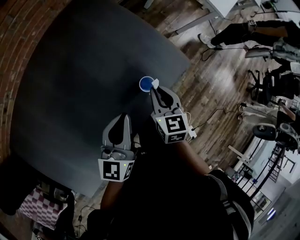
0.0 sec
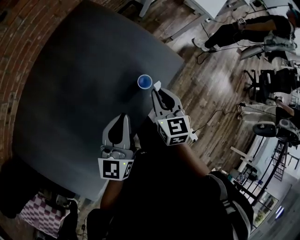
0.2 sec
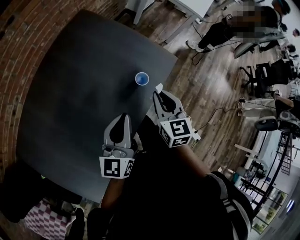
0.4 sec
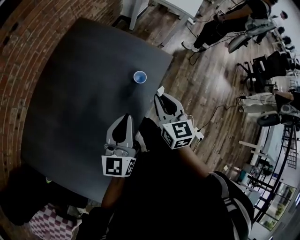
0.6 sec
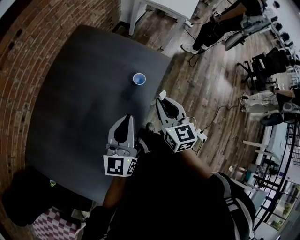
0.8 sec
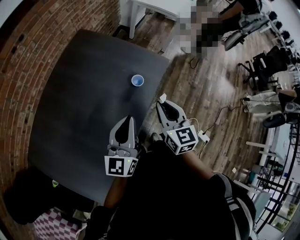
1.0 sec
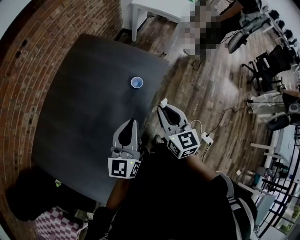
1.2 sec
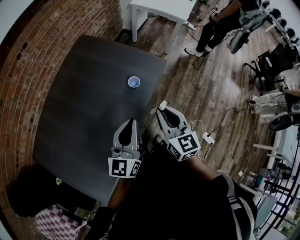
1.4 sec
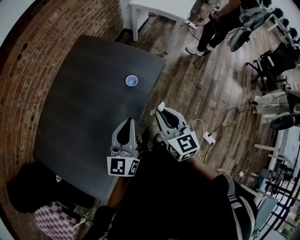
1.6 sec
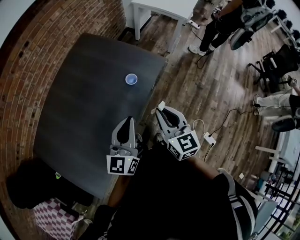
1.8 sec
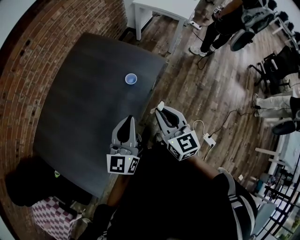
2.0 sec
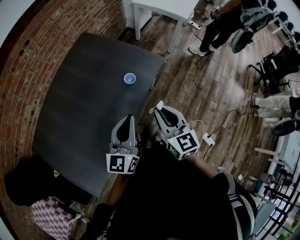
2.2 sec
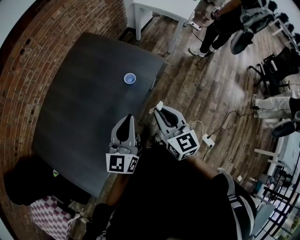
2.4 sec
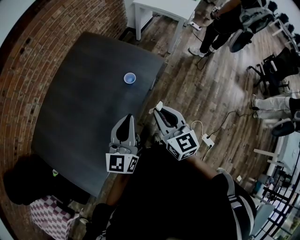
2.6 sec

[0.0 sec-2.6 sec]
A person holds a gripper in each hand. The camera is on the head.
0.0 sec to 1.2 sec: Both grippers travel together backward and upward, about 20 cm. The right gripper turns by about 20 degrees.
1.2 sec to 2.6 sec: The two grippers go some 5 cm to the right.

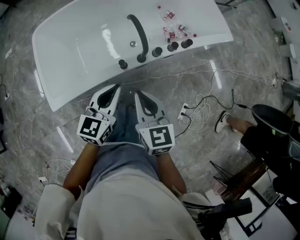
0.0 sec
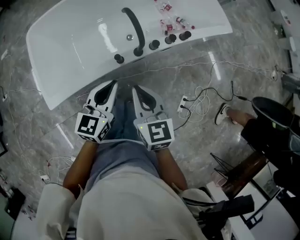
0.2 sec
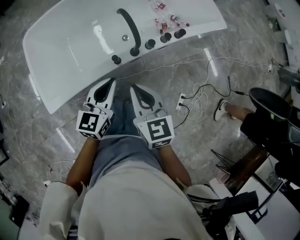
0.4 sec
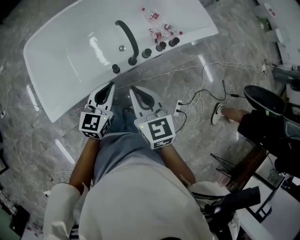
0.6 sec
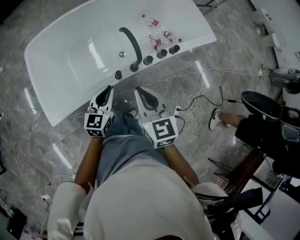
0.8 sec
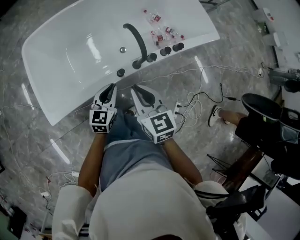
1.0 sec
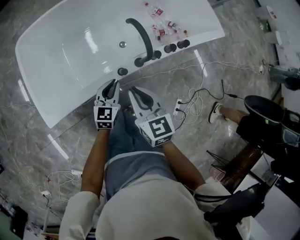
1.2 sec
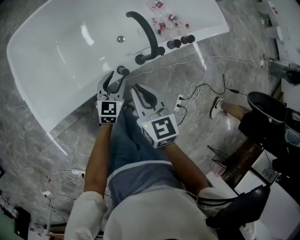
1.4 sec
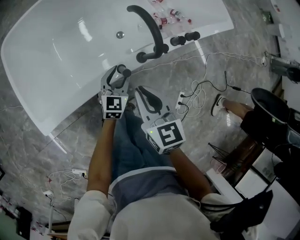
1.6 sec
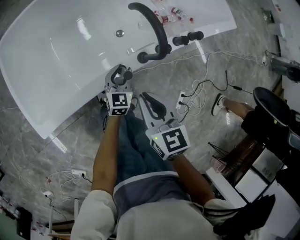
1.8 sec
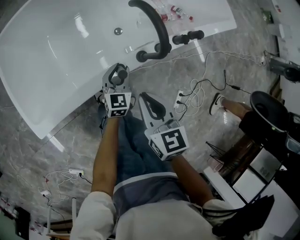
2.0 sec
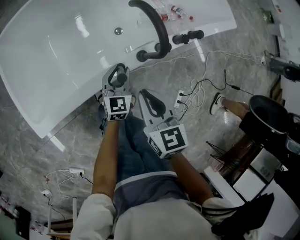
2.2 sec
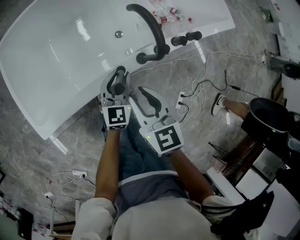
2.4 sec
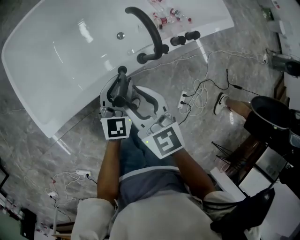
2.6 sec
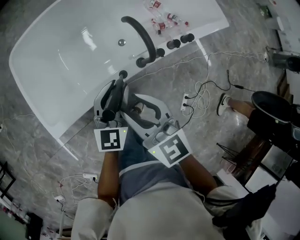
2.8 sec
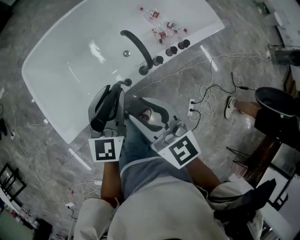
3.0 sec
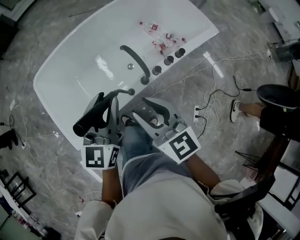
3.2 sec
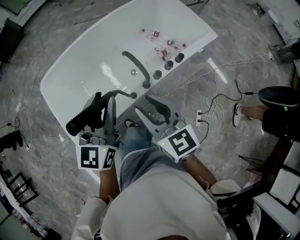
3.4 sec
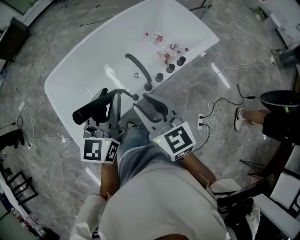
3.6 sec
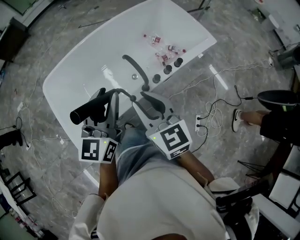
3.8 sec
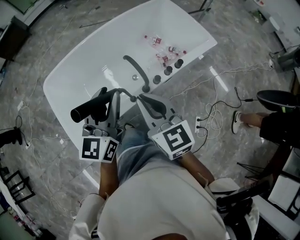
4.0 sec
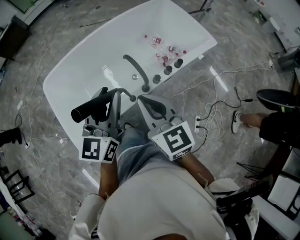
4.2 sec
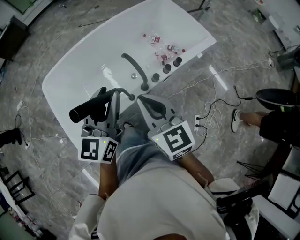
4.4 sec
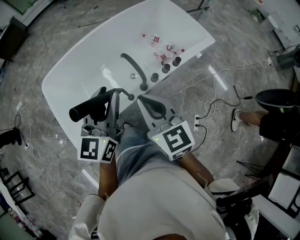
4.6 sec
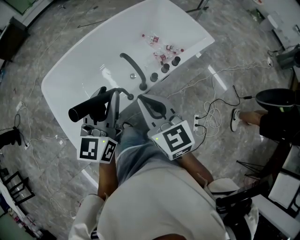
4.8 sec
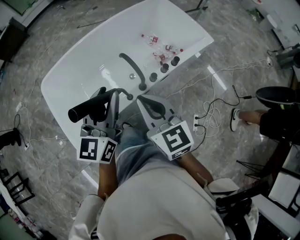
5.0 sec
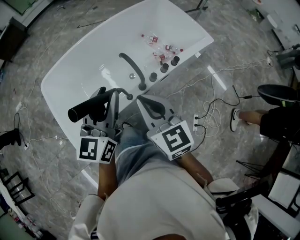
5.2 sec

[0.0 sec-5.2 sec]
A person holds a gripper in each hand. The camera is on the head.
0.0 sec to 1.8 sec: The left gripper goes approximately 50 cm downward and forward, and opens up, while the right gripper travels downward, forward and to the left by about 35 cm.
1.8 sec to 3.4 sec: The grippers both shift upward by approximately 60 cm. The right gripper rotates roughly 20 degrees, and opens up, while the left gripper turns by approximately 20 degrees.
3.4 sec to 5.2 sec: The right gripper closes its fingers.

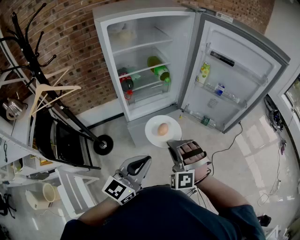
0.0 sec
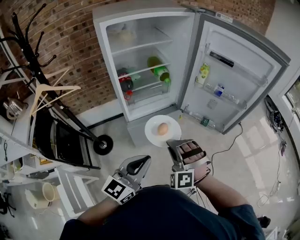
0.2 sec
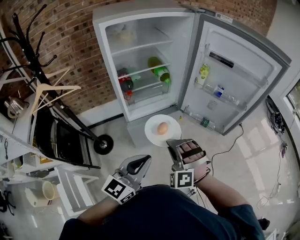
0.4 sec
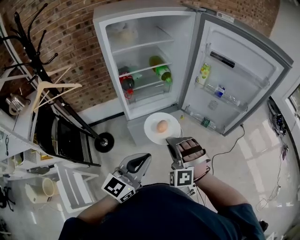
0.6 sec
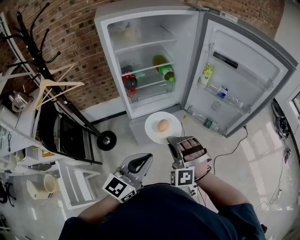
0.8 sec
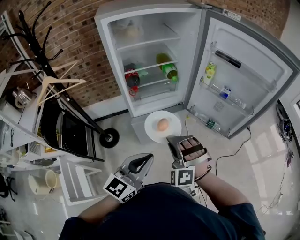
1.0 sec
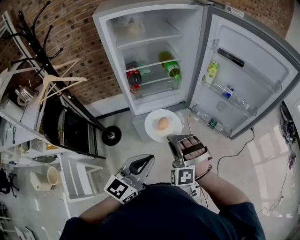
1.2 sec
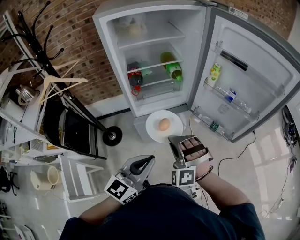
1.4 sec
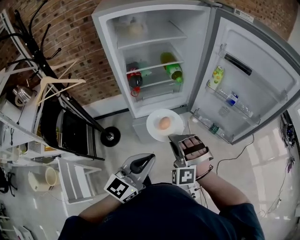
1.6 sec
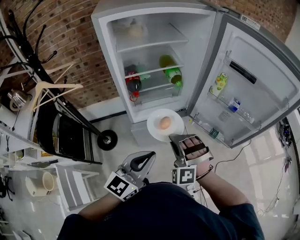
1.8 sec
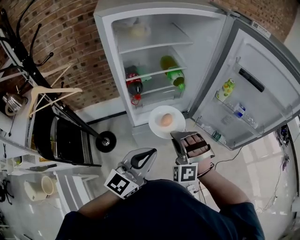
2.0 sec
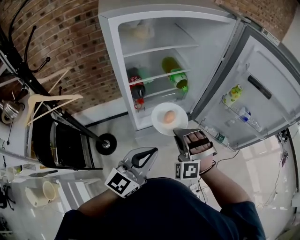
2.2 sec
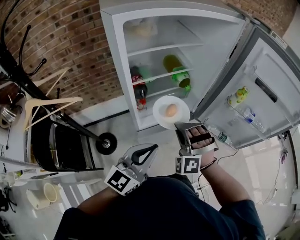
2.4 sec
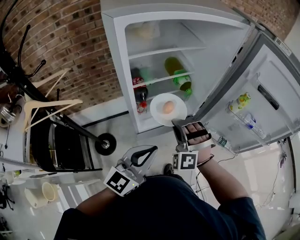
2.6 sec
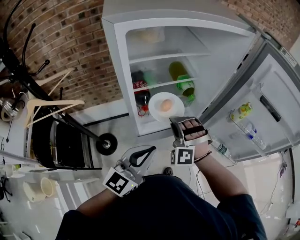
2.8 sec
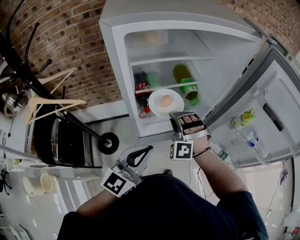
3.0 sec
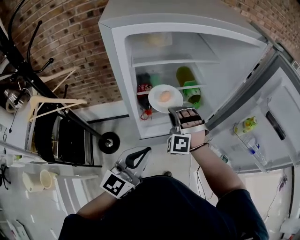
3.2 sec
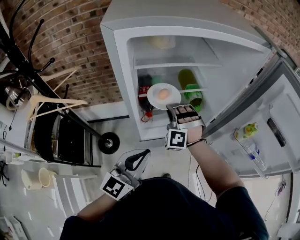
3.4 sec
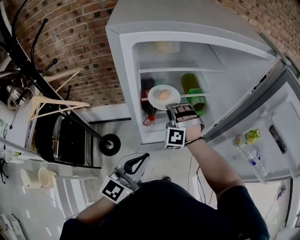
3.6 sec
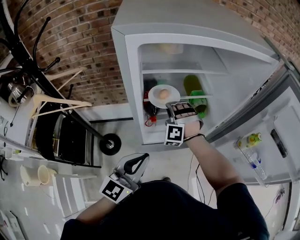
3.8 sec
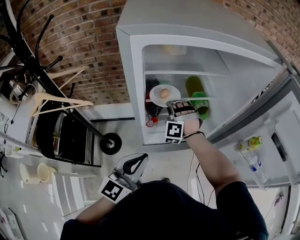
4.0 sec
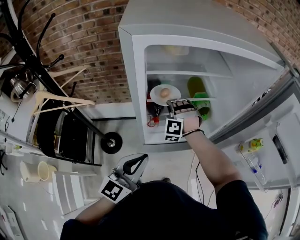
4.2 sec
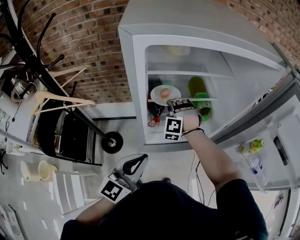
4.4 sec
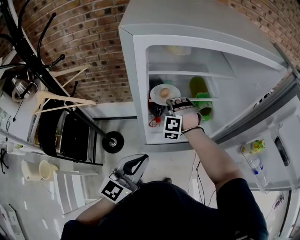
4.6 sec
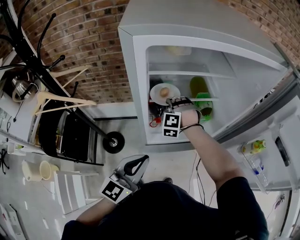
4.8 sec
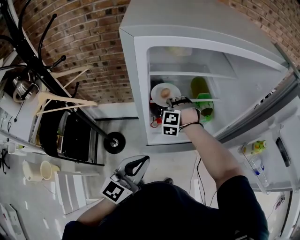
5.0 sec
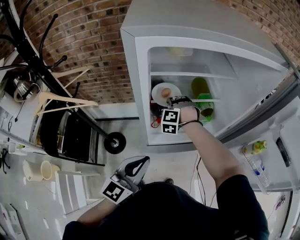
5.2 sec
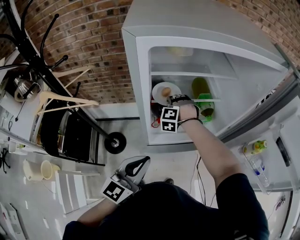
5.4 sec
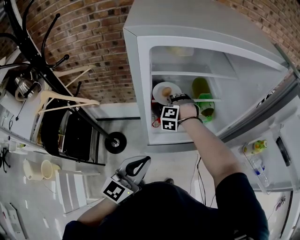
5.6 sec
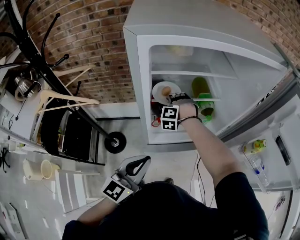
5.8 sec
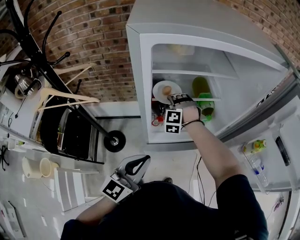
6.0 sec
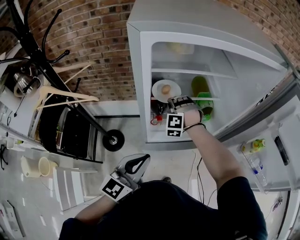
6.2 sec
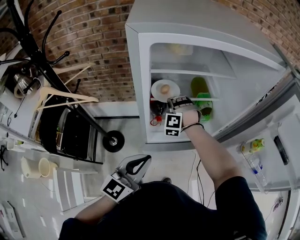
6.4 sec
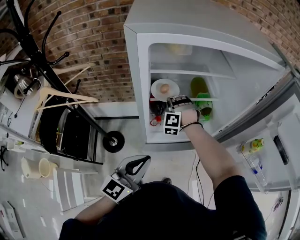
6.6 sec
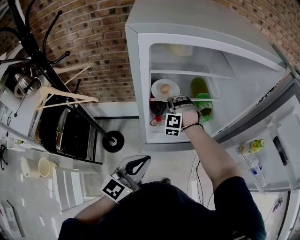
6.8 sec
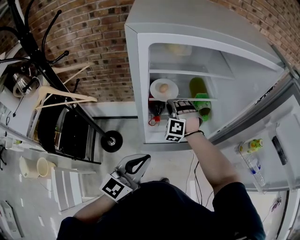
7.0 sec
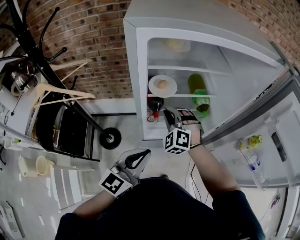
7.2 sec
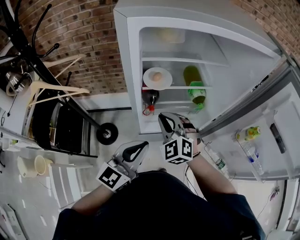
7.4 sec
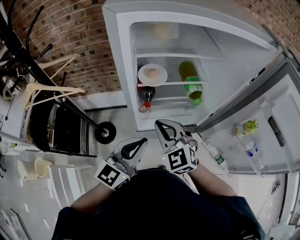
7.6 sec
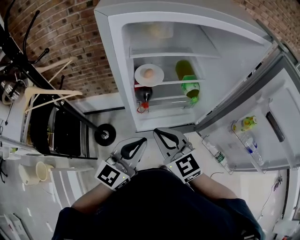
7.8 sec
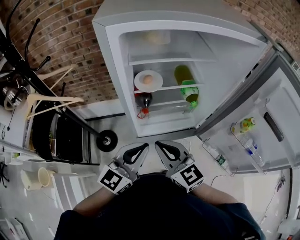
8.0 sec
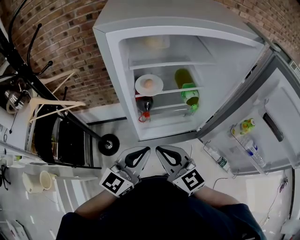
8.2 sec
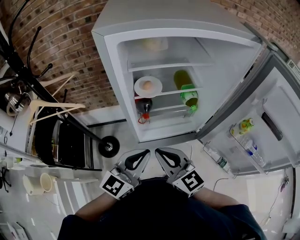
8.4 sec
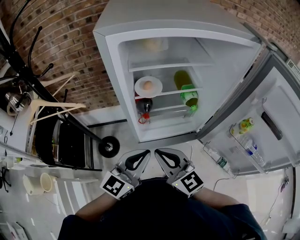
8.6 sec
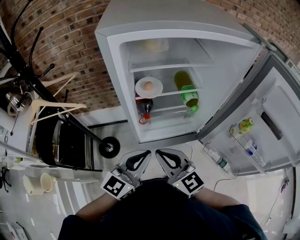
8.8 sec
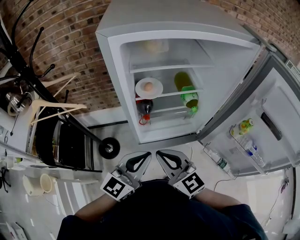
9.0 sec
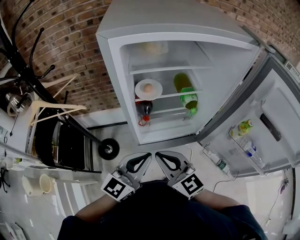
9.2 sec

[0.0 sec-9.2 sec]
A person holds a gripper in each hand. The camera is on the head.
0.0 sec to 1.6 sec: The left gripper moves roughly 5 cm.
1.6 sec to 3.0 sec: The left gripper moves approximately 25 cm.
3.0 sec to 4.6 sec: The left gripper ends up some 5 cm from where it was.

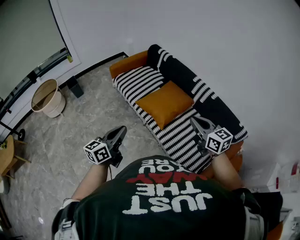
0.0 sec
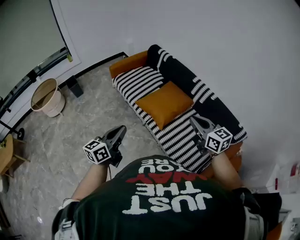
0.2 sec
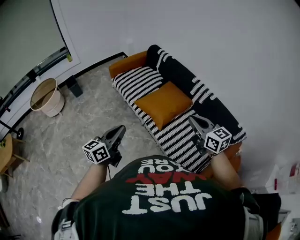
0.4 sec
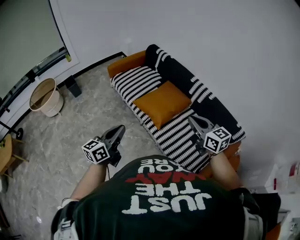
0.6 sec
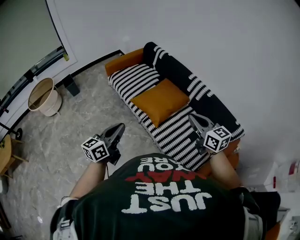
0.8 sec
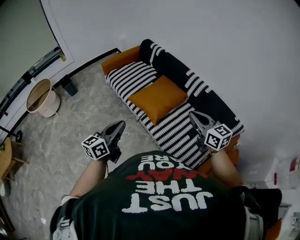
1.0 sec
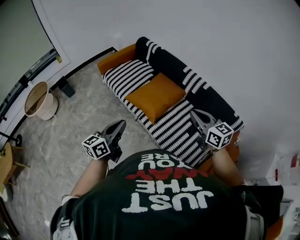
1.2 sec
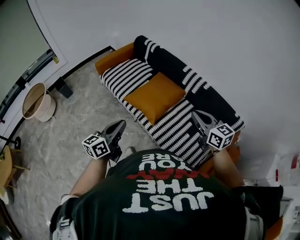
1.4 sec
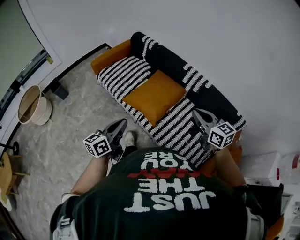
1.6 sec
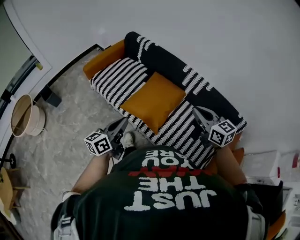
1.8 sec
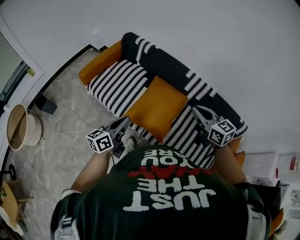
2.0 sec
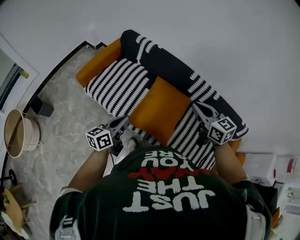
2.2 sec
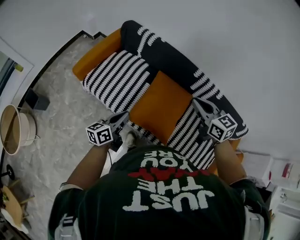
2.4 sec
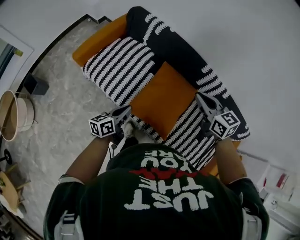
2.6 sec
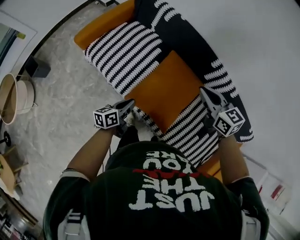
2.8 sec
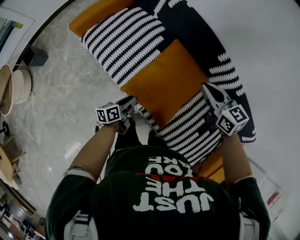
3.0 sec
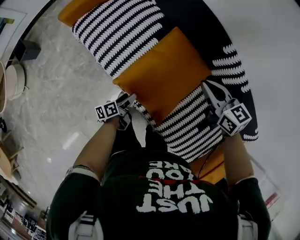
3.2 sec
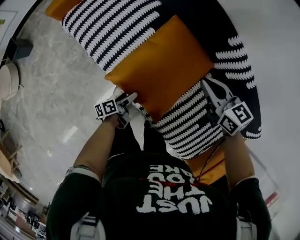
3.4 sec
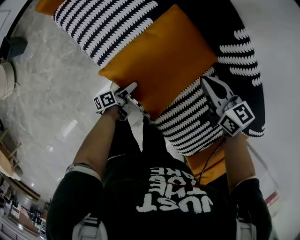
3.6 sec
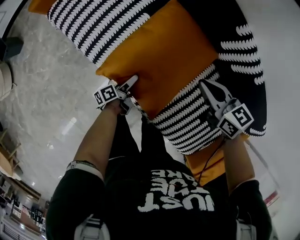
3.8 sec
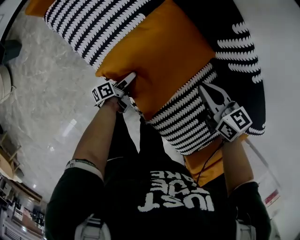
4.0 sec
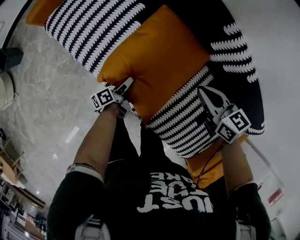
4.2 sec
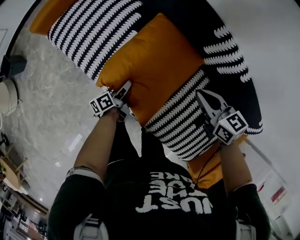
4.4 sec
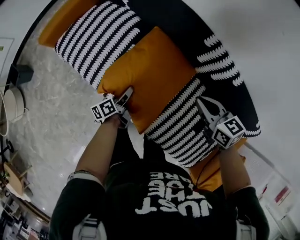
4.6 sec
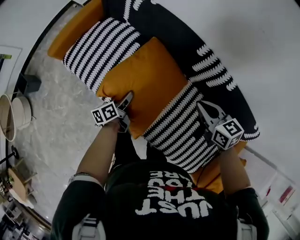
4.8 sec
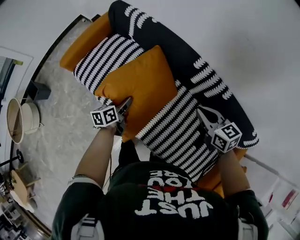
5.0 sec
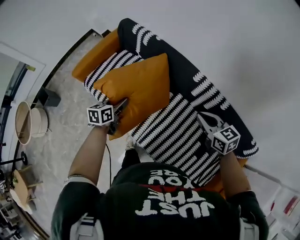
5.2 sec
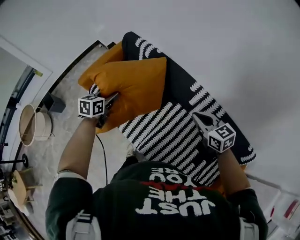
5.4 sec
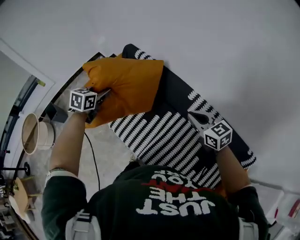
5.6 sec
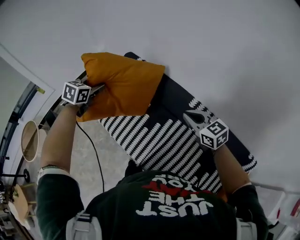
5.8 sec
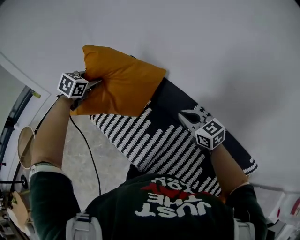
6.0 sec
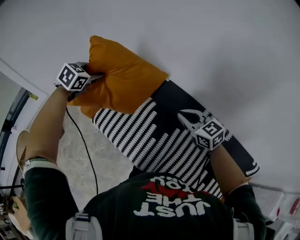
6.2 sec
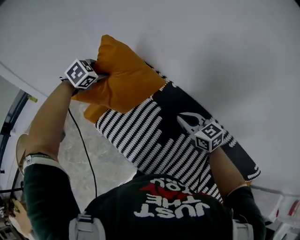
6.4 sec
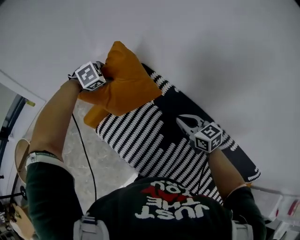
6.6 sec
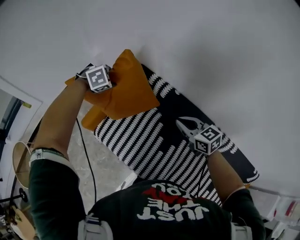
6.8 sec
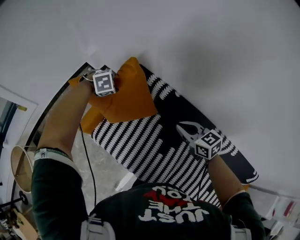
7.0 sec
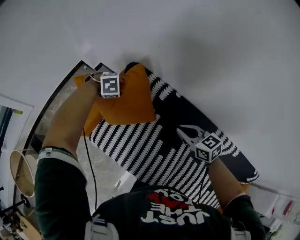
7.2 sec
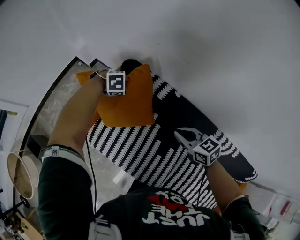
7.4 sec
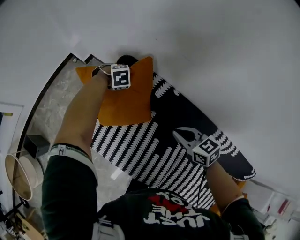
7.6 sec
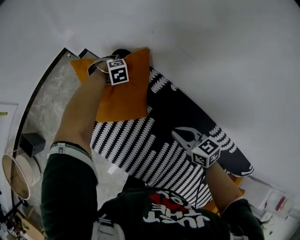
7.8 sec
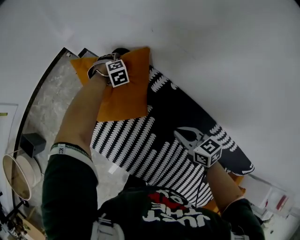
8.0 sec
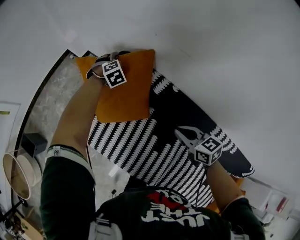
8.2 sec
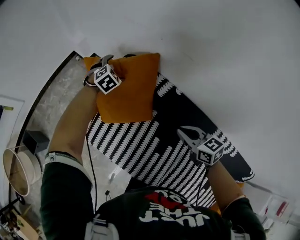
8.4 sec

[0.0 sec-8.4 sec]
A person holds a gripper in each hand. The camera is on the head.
0.0 sec to 1.4 sec: The right gripper travels to the right by about 5 cm, while the left gripper travels to the right and forward by some 10 cm.
1.4 sec to 2.8 sec: The left gripper heads forward and downward, covering roughly 40 cm, and rotates about 30 degrees; the right gripper moves forward and to the left, approximately 40 cm.
2.8 sec to 4.2 sec: The two grippers go roughly 25 cm downward and to the right. The left gripper rotates some 30 degrees, and opens.
4.2 sec to 5.6 sec: The left gripper travels upward and forward by roughly 50 cm, and rolls clockwise, seen from behind, by approximately 70 degrees, while the right gripper heads upward, covering some 25 cm, and turns by about 20 degrees.
5.6 sec to 7.0 sec: The right gripper ends up some 35 cm from where it was, while the left gripper ends up about 35 cm from where it was, and twists about 60 degrees clockwise, seen from behind.
7.0 sec to 8.4 sec: The right gripper shifts roughly 5 cm downward. Meanwhile the left gripper changes its angle by some 30 degrees, and opens its fingers.
